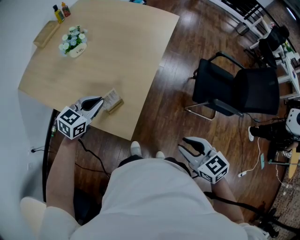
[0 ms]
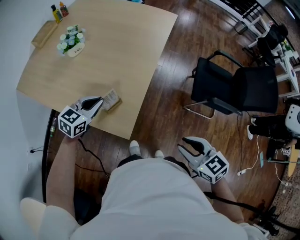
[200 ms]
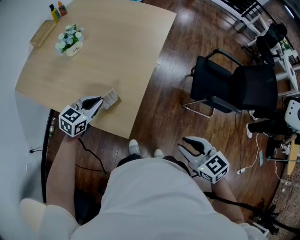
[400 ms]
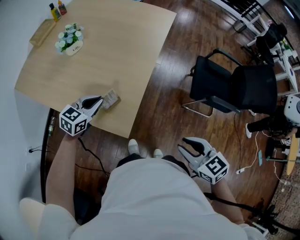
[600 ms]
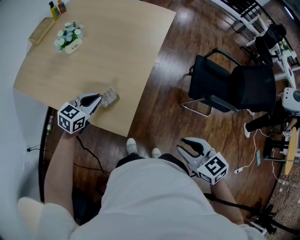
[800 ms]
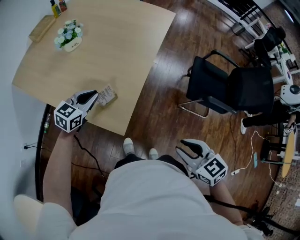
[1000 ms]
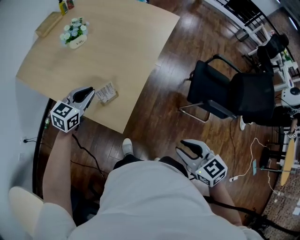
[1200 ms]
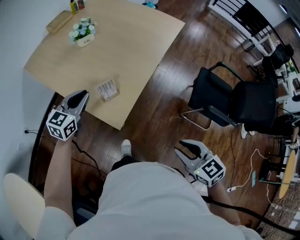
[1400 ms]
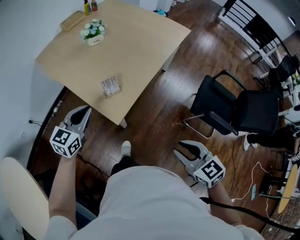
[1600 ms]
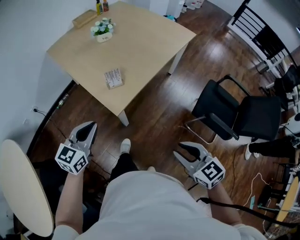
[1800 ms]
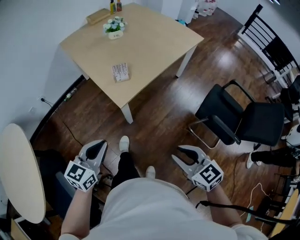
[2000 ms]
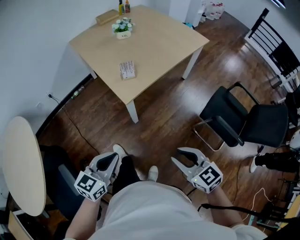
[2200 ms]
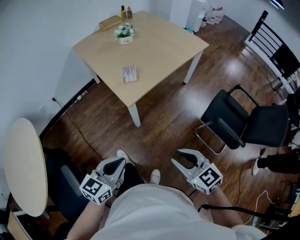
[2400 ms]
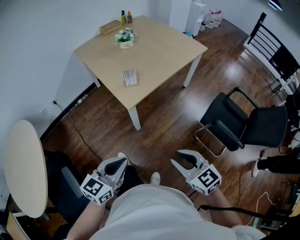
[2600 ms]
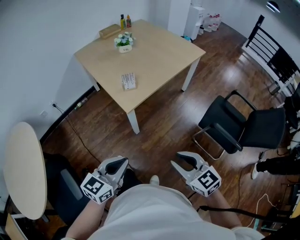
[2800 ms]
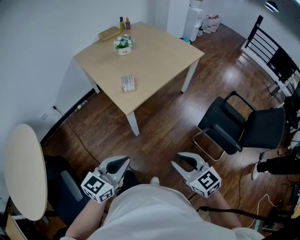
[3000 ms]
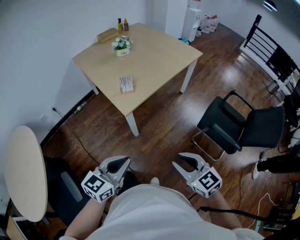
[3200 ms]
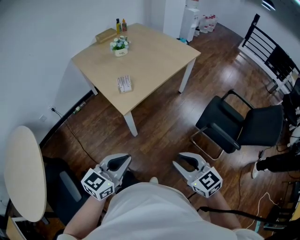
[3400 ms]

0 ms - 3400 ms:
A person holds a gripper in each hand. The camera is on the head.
0 ms - 1600 ms: The right gripper goes some 10 cm to the right and backward; the left gripper goes roughly 15 cm backward, and changes its angle by about 30 degrees.
1600 ms - 3400 ms: The right gripper heads backward, covering roughly 15 cm. Meanwhile the left gripper moves backward and to the right, about 40 cm.

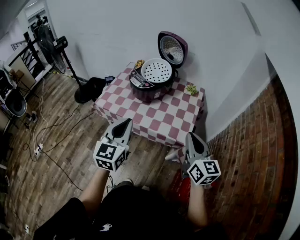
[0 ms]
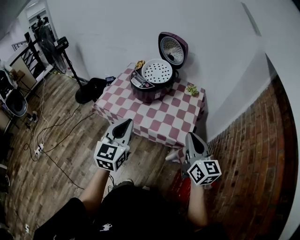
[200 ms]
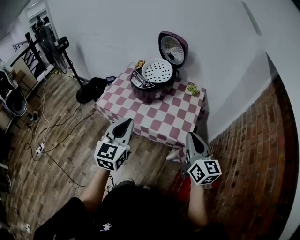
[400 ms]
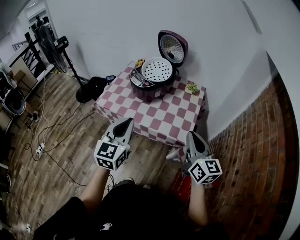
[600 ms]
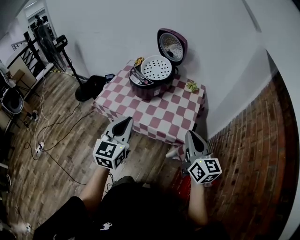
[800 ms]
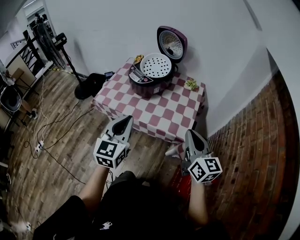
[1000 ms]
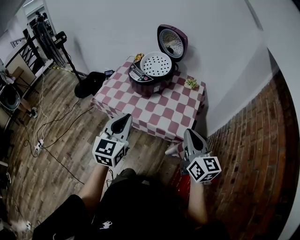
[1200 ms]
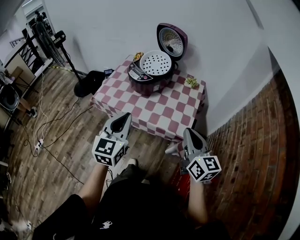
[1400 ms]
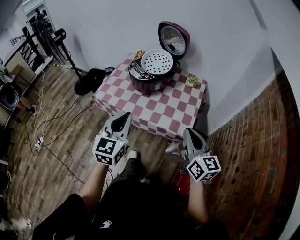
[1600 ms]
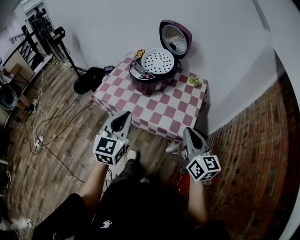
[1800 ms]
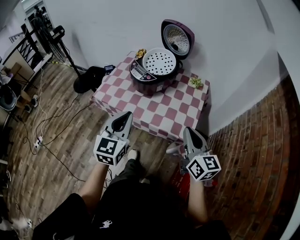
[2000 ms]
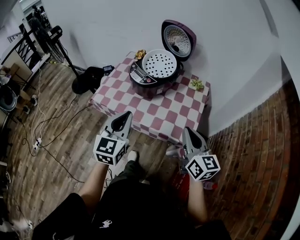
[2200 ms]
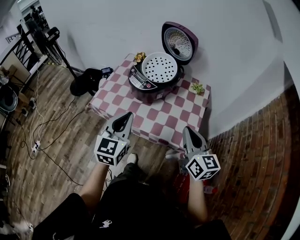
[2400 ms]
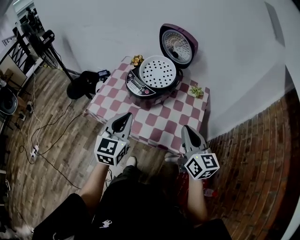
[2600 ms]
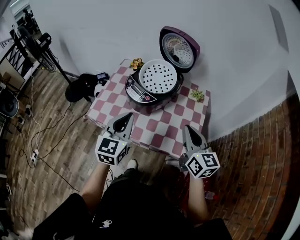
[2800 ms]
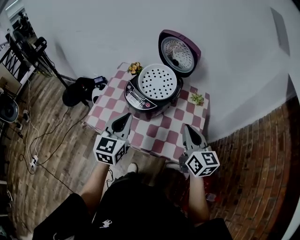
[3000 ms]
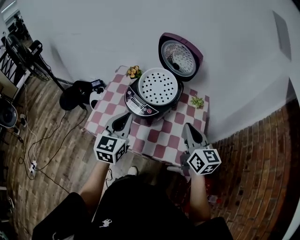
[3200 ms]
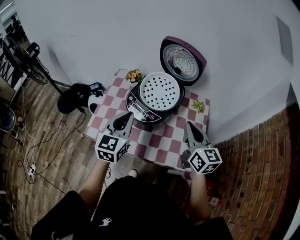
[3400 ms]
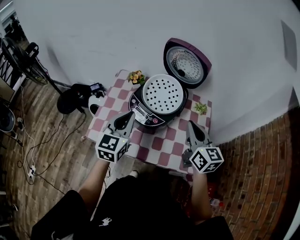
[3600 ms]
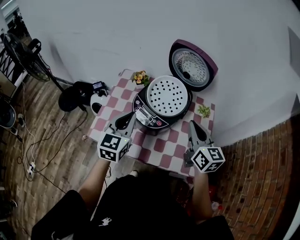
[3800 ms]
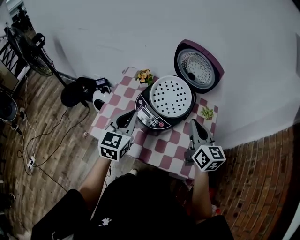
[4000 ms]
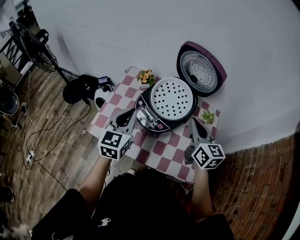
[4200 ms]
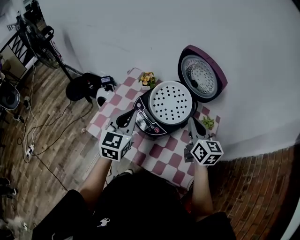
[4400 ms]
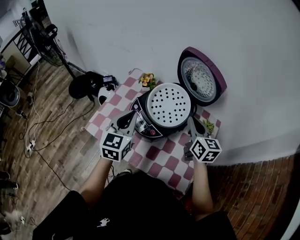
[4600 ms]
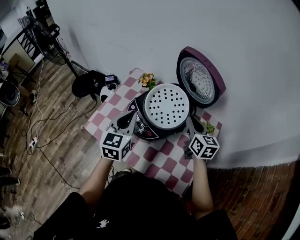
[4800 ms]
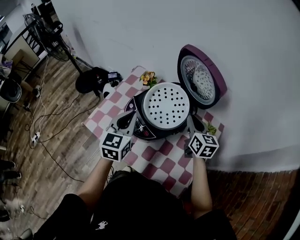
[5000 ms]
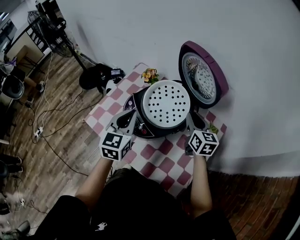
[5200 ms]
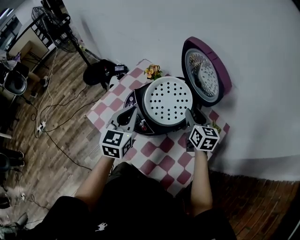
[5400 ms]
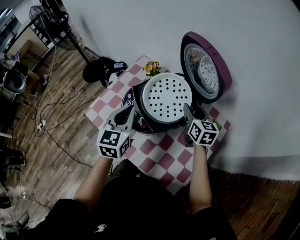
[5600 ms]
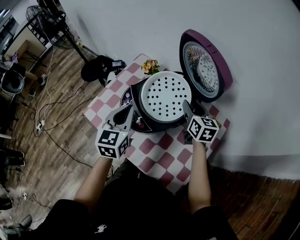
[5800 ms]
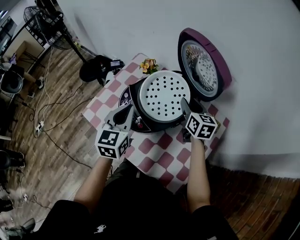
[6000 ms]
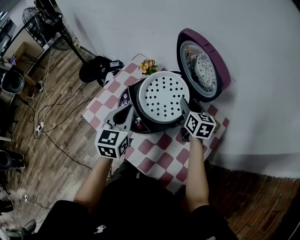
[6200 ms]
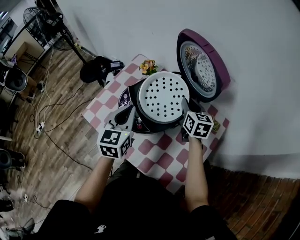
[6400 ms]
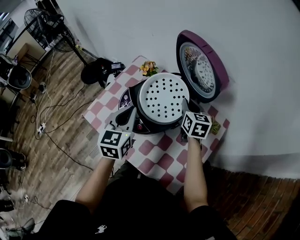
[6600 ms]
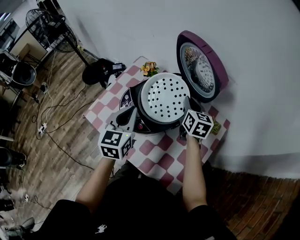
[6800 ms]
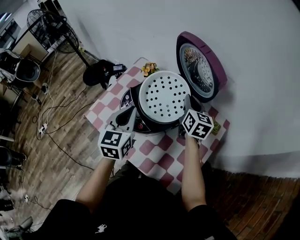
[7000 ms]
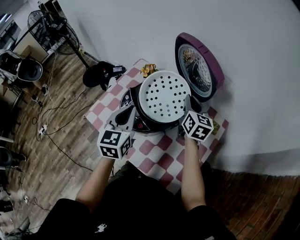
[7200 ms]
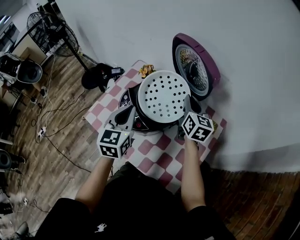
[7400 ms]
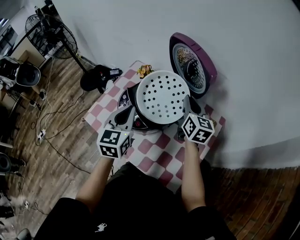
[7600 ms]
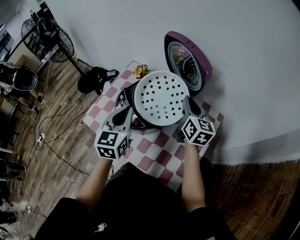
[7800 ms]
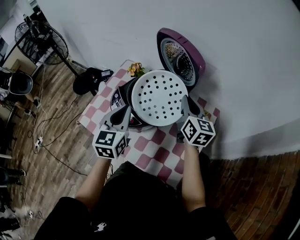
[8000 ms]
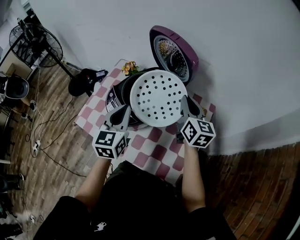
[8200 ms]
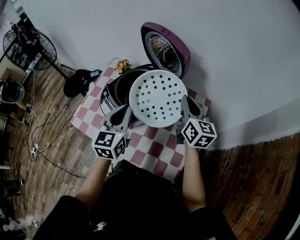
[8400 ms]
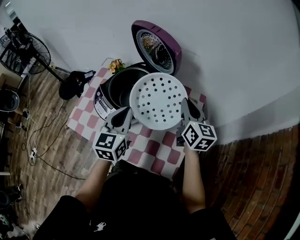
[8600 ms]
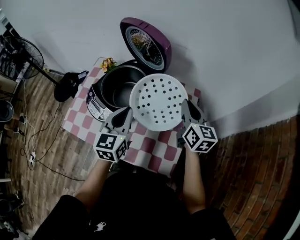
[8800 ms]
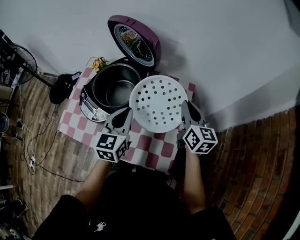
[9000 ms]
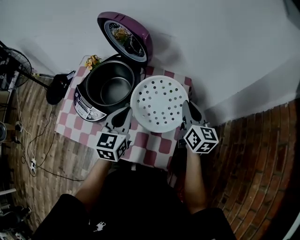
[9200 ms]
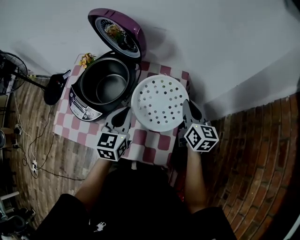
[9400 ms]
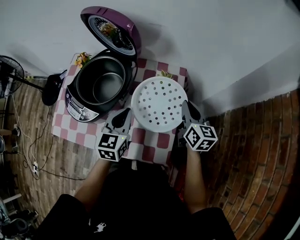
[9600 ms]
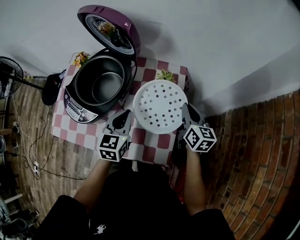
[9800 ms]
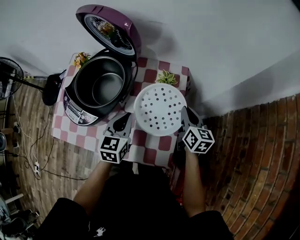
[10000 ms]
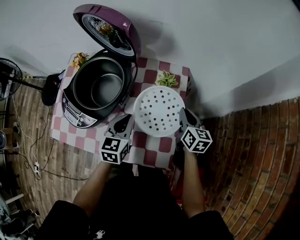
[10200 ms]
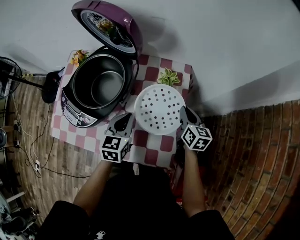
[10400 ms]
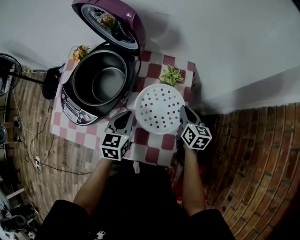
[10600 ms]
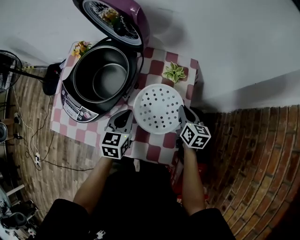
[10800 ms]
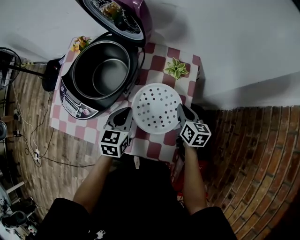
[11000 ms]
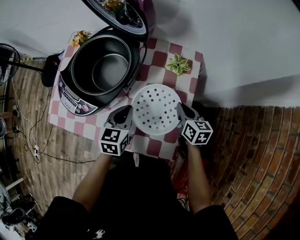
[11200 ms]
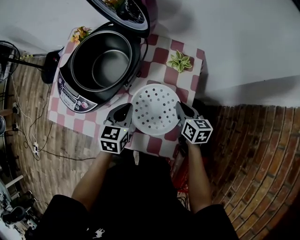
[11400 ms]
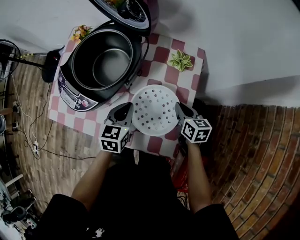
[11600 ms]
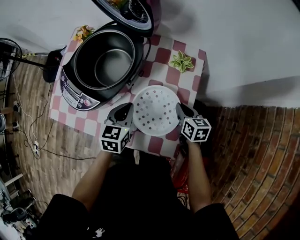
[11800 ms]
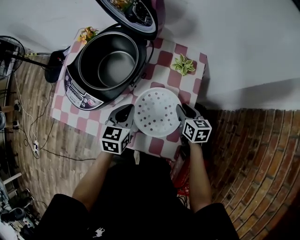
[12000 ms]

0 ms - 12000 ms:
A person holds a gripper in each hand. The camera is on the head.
0 ms - 1600 ms: The grippers stay close to where they were, moving slightly.
1600 ms - 3000 ms: Both grippers move forward, some 25 cm.
3000 ms - 4400 ms: Both grippers move forward, approximately 15 cm.
4400 ms - 6000 ms: The right gripper goes about 15 cm forward, downward and to the right, and opens its fingers. Meanwhile the left gripper goes some 5 cm to the right.
6000 ms - 7600 ms: The right gripper travels upward by approximately 5 cm, and closes.
7600 ms - 9000 ms: The right gripper goes approximately 20 cm to the right and backward, while the left gripper is displaced to the right by some 15 cm, and changes its angle by approximately 20 degrees.
9000 ms - 10400 ms: Both grippers travel together downward, about 15 cm.
10400 ms - 12000 ms: The left gripper shifts by roughly 5 cm, while the right gripper travels downward and to the left by about 10 cm, and rotates roughly 20 degrees.

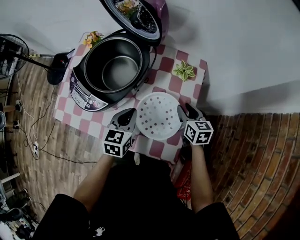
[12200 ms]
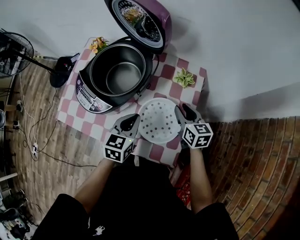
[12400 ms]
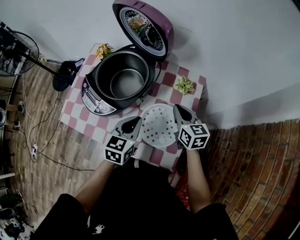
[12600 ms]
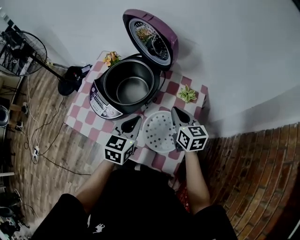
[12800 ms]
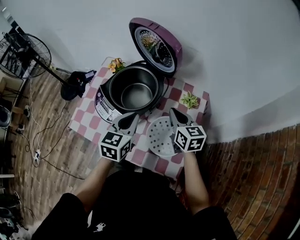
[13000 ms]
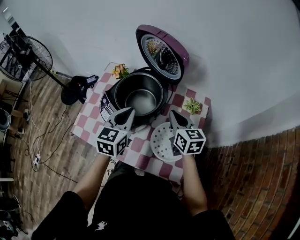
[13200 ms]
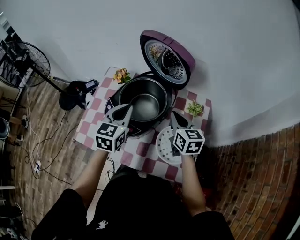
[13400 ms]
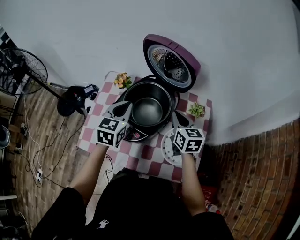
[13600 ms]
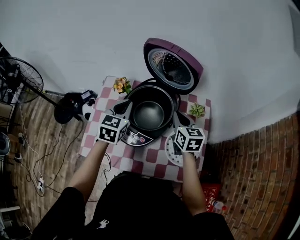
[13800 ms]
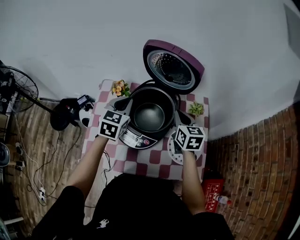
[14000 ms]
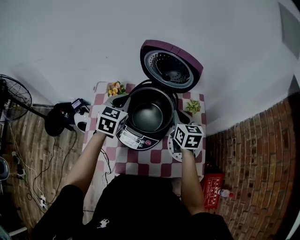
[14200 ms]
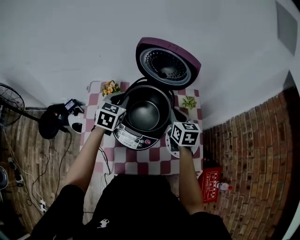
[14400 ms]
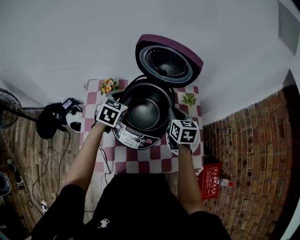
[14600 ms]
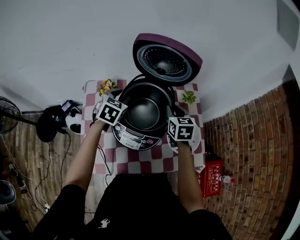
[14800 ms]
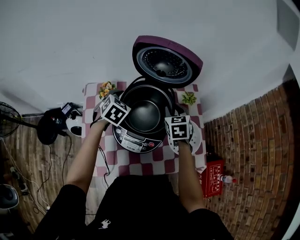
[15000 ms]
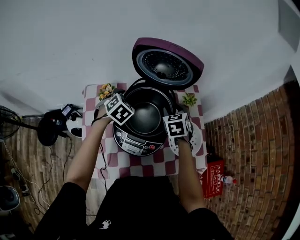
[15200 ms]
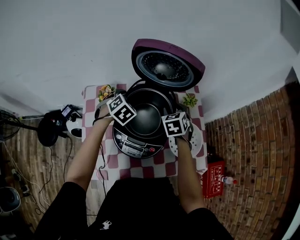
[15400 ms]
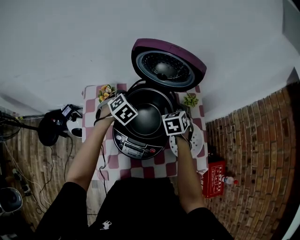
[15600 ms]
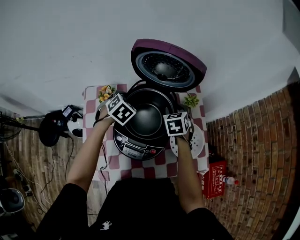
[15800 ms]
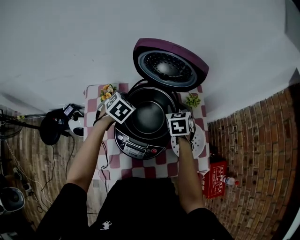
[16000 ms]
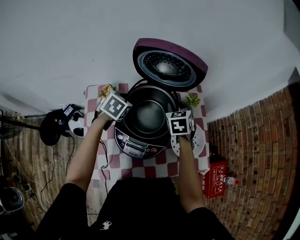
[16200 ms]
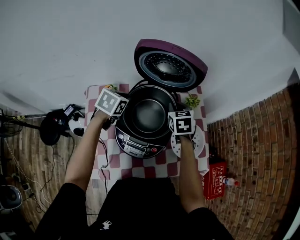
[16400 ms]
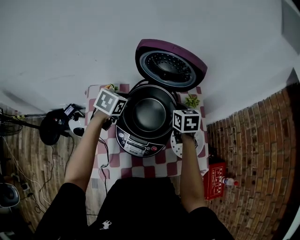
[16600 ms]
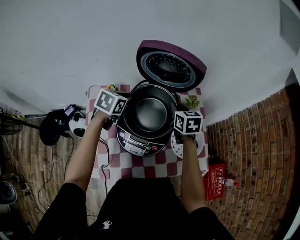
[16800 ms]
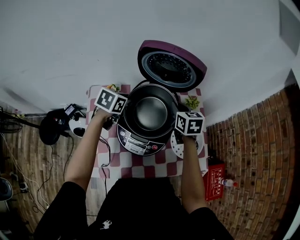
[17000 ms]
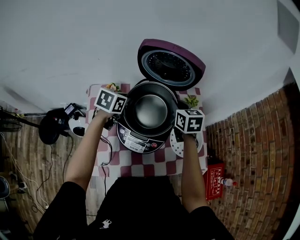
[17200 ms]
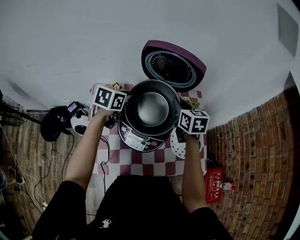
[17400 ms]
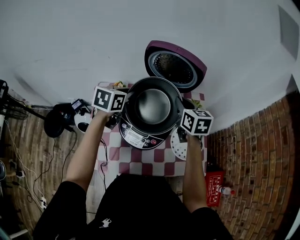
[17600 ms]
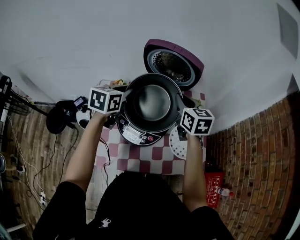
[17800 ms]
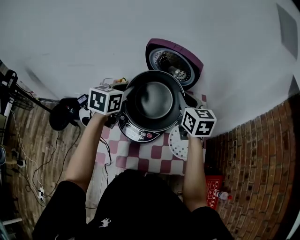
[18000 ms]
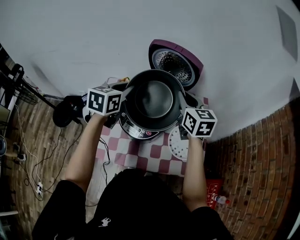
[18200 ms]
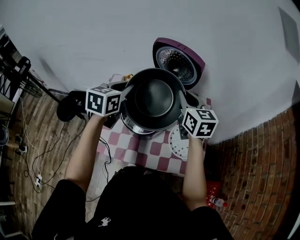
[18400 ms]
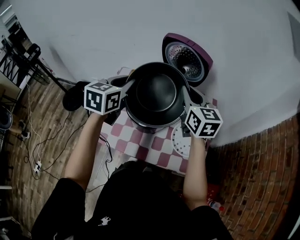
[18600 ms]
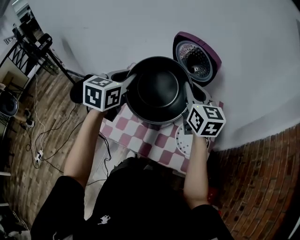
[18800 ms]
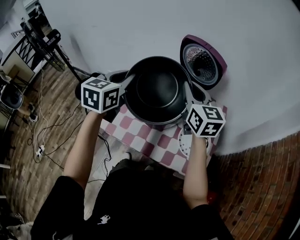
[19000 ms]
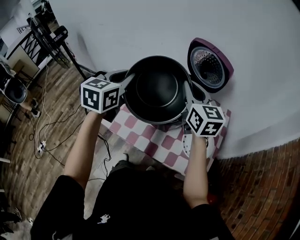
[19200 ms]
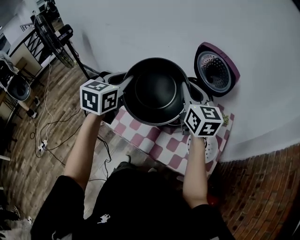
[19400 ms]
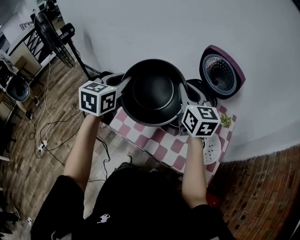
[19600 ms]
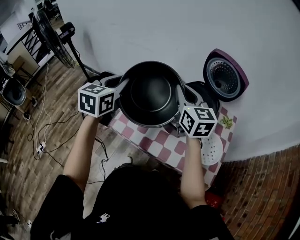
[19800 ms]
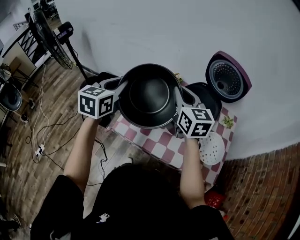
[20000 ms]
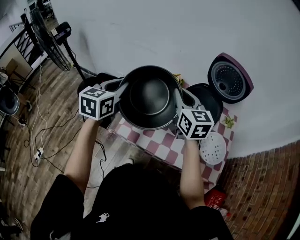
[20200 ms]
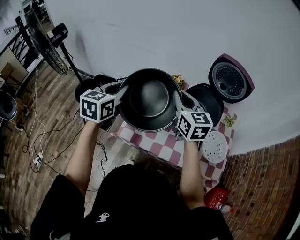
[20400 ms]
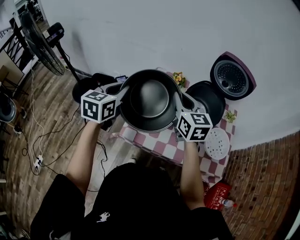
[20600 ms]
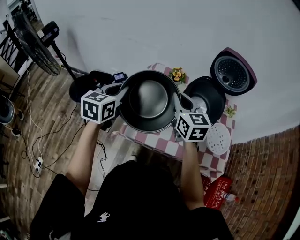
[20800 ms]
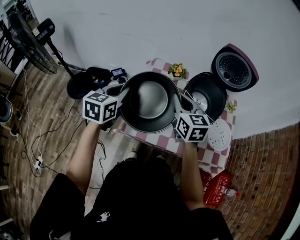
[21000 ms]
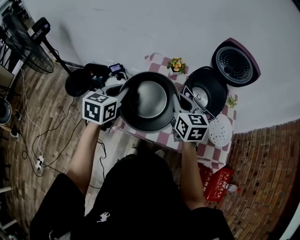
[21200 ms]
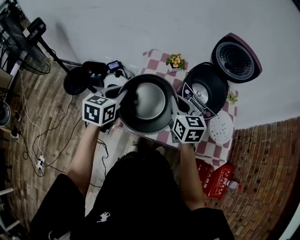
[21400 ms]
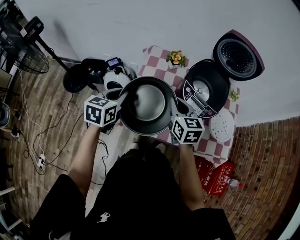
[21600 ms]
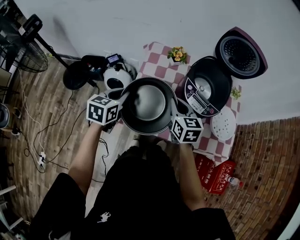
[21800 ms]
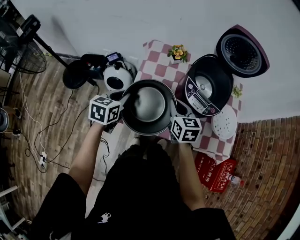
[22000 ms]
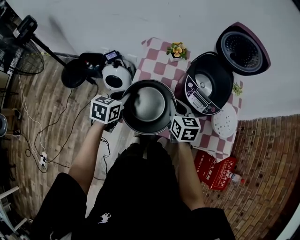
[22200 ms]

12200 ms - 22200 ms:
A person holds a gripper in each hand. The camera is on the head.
12200 ms - 13600 ms: The two grippers go approximately 25 cm upward, to the left and forward. The right gripper closes up.
13600 ms - 15000 ms: The right gripper shifts by some 5 cm, changes its angle by some 30 degrees, and opens its fingers, while the left gripper shifts by about 15 cm, swivels some 40 degrees, and opens up.
15000 ms - 16400 ms: The left gripper changes its angle by about 20 degrees, and closes up.
16400 ms - 18000 ms: The left gripper shifts some 15 cm upward and backward, and turns by roughly 30 degrees. The right gripper shifts about 15 cm upward, and turns by some 30 degrees.
18000 ms - 19400 ms: The left gripper changes place by roughly 25 cm, and turns by roughly 30 degrees. Meanwhile the right gripper changes place by roughly 20 cm, and rotates approximately 30 degrees.
19400 ms - 20800 ms: The grippers both shift to the left and downward by approximately 20 cm.
20800 ms - 22200 ms: Both grippers travel together downward, approximately 15 cm.
